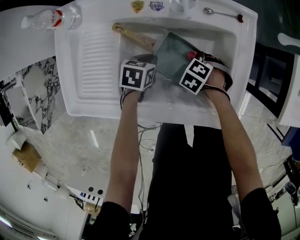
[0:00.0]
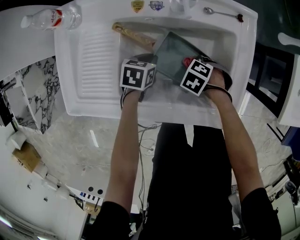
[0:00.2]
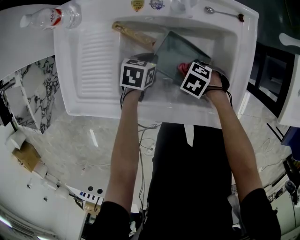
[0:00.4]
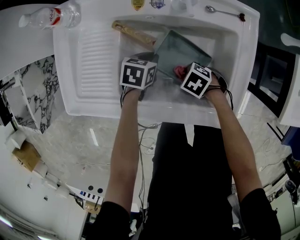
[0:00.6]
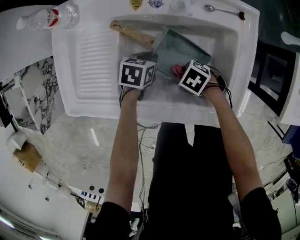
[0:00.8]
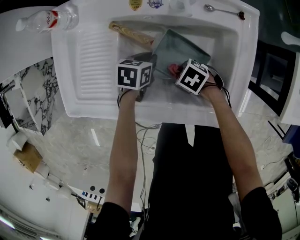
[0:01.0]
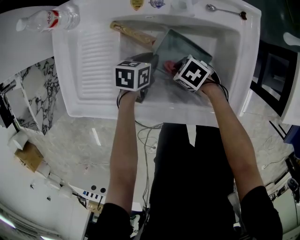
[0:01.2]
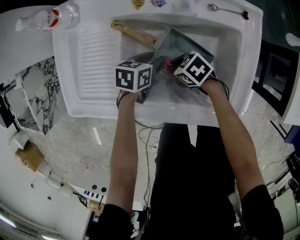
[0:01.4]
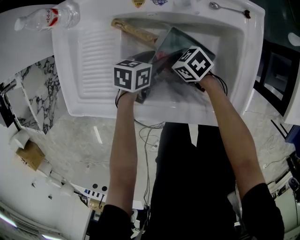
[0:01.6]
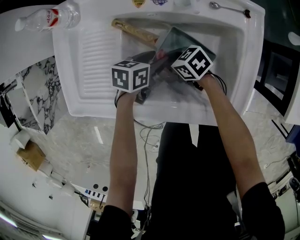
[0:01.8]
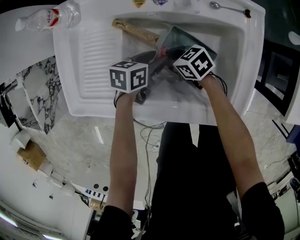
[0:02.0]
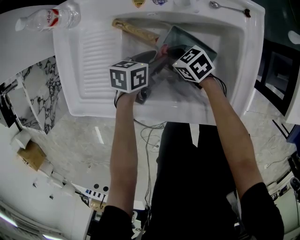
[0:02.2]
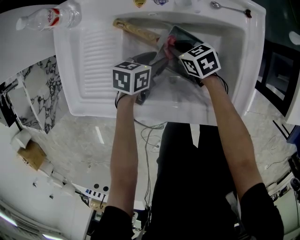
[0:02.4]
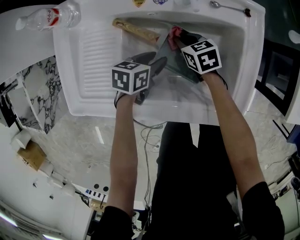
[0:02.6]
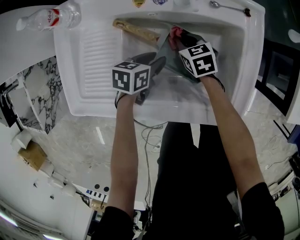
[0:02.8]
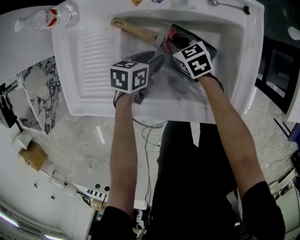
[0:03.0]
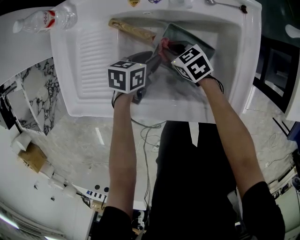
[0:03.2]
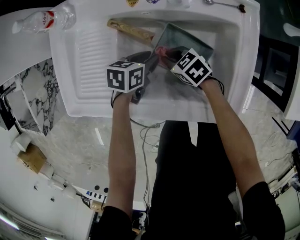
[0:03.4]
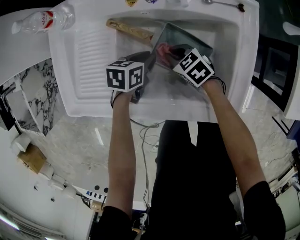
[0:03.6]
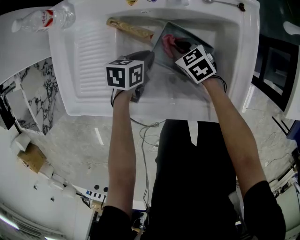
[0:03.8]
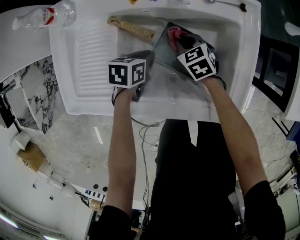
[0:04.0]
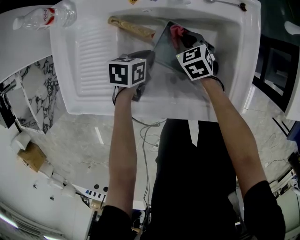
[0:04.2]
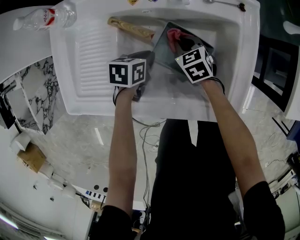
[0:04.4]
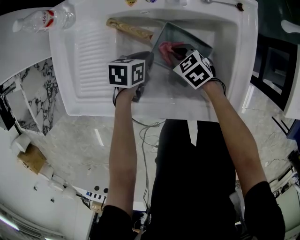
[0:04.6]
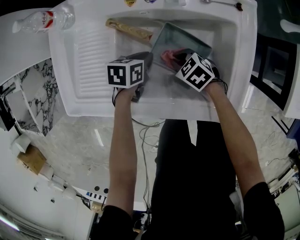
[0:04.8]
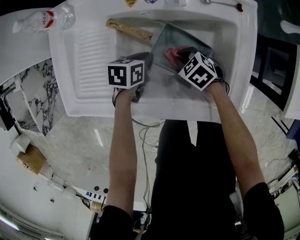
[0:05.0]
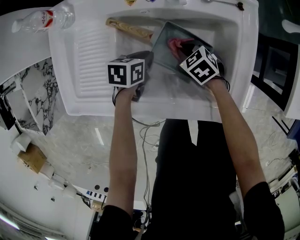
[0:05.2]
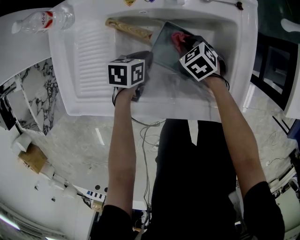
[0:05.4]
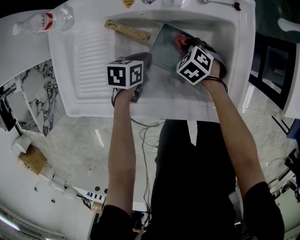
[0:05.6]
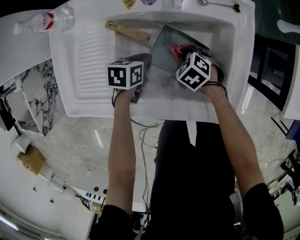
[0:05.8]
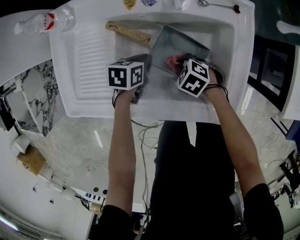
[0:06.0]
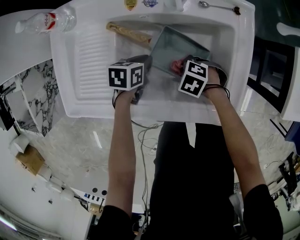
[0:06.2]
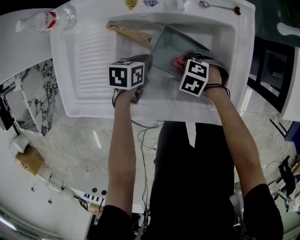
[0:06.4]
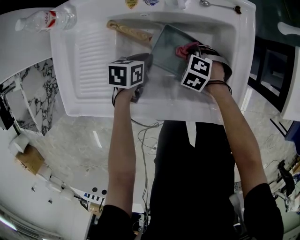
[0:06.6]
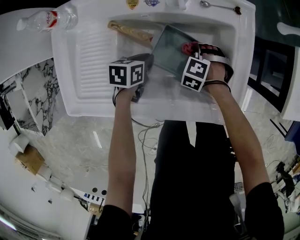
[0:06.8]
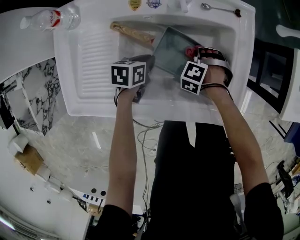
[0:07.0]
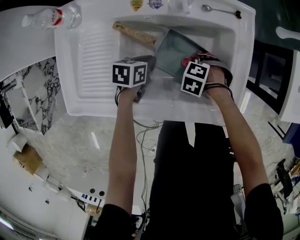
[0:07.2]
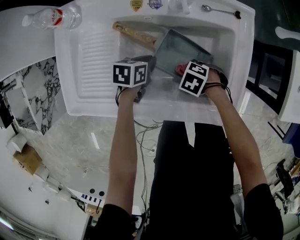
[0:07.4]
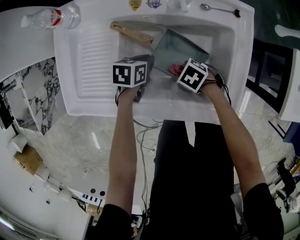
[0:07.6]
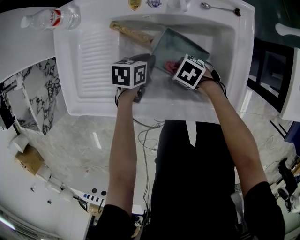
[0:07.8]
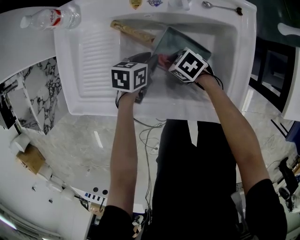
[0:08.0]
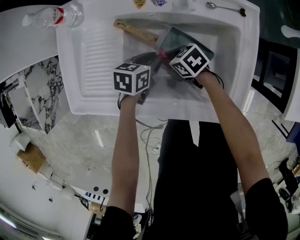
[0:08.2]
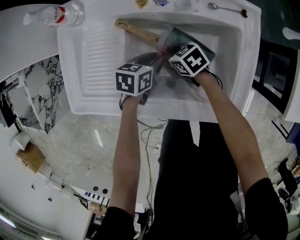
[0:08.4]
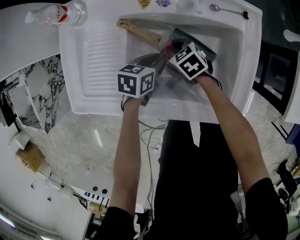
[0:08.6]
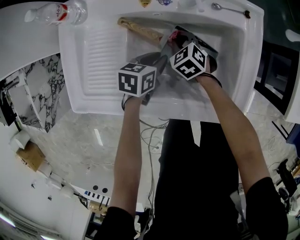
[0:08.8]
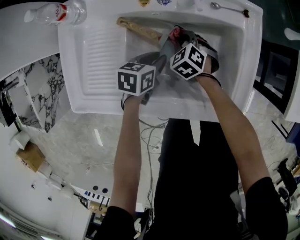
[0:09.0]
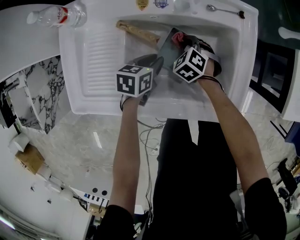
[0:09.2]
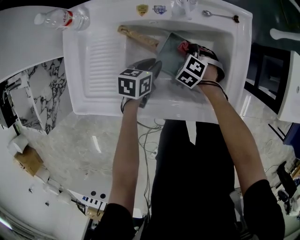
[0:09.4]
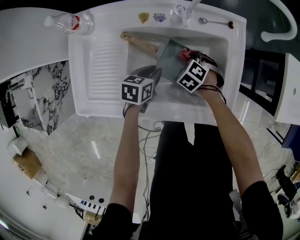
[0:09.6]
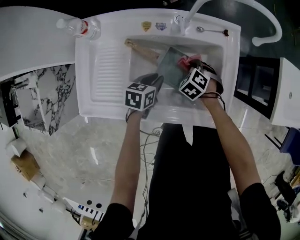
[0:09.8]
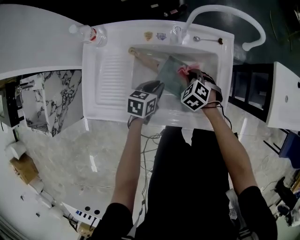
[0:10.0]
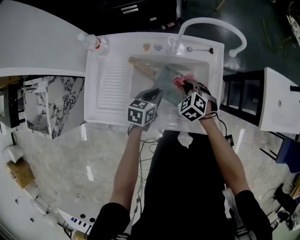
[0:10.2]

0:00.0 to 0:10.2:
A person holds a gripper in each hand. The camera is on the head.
0:00.0 to 0:01.4: The left gripper opens, while the right gripper shifts by approximately 15 cm, and tips its fingers upward by roughly 40 degrees.
0:01.4 to 0:03.0: The right gripper changes place by some 10 cm, and rotates about 30 degrees.
0:03.0 to 0:04.4: The left gripper closes up.
0:04.4 to 0:05.8: The right gripper moves roughly 5 cm, and rotates some 30 degrees.
0:05.8 to 0:07.2: The right gripper ends up roughly 5 cm from where it was, and changes its angle by approximately 30 degrees.
0:07.2 to 0:08.8: The right gripper ends up approximately 15 cm from where it was, and angles its fingers upward, by some 30 degrees.
0:08.8 to 0:10.2: The left gripper shifts some 10 cm upward. The right gripper moves upward and to the right, some 20 cm.

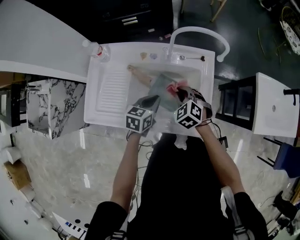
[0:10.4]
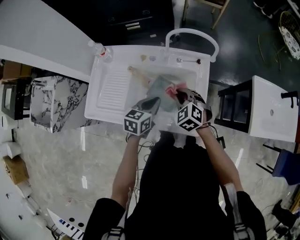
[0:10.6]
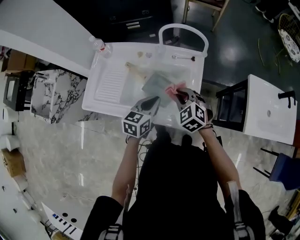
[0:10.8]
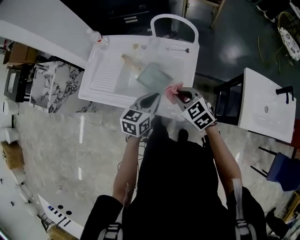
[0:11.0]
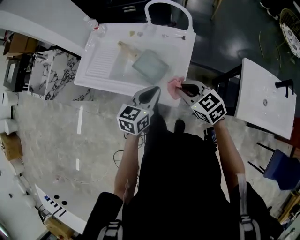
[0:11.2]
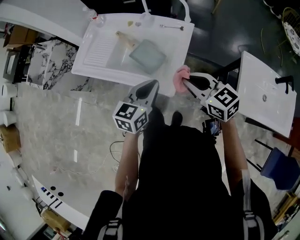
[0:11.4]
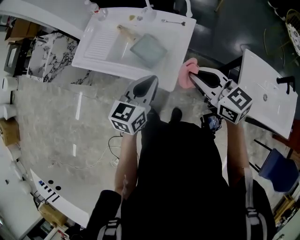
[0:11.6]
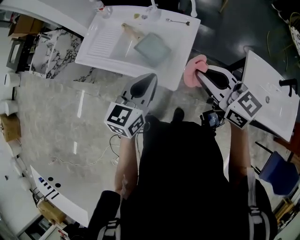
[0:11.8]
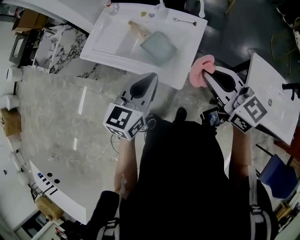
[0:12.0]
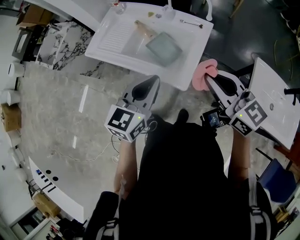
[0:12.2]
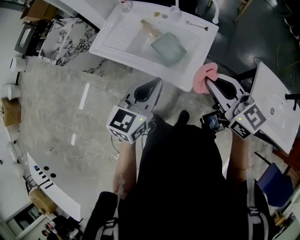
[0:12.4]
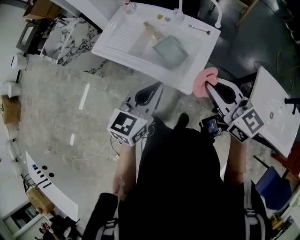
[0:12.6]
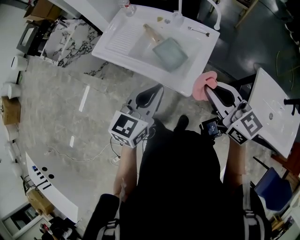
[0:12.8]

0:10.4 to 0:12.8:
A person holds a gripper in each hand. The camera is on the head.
0:10.4 to 0:11.6: The right gripper changes place by roughly 35 cm, and tilts its fingers some 40 degrees upward, while the left gripper moves roughly 30 cm, and turns by some 30 degrees.
0:11.6 to 0:12.8: The left gripper heads to the left and upward, covering about 10 cm. Meanwhile the right gripper heads upward, covering roughly 5 cm.

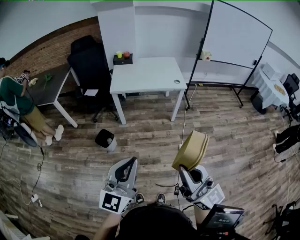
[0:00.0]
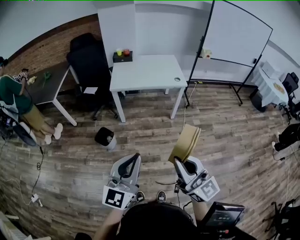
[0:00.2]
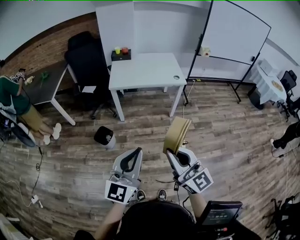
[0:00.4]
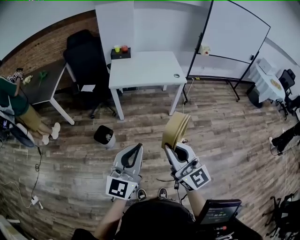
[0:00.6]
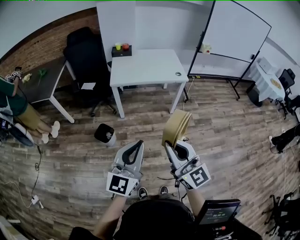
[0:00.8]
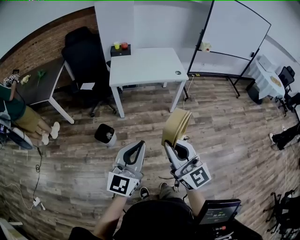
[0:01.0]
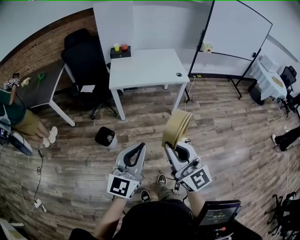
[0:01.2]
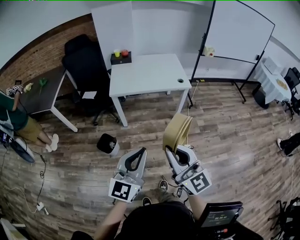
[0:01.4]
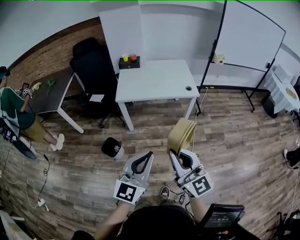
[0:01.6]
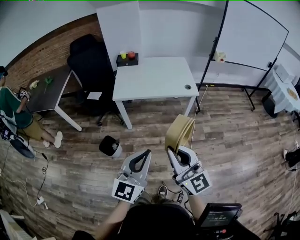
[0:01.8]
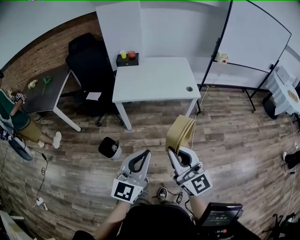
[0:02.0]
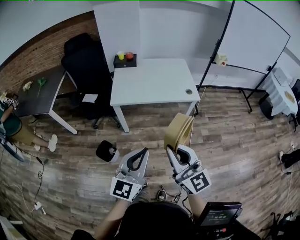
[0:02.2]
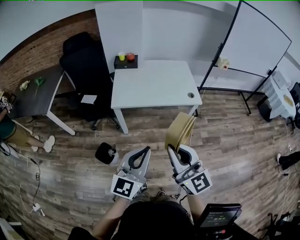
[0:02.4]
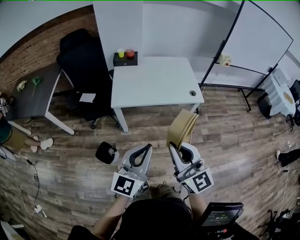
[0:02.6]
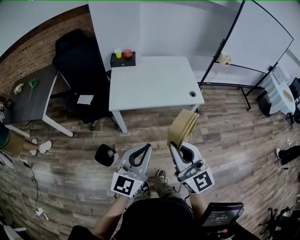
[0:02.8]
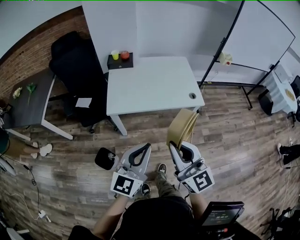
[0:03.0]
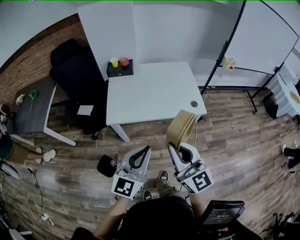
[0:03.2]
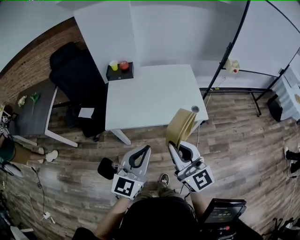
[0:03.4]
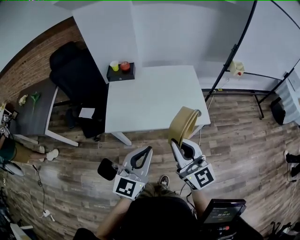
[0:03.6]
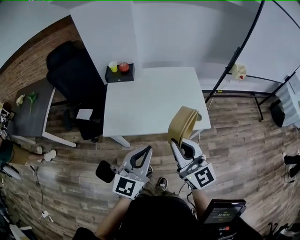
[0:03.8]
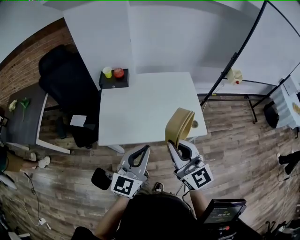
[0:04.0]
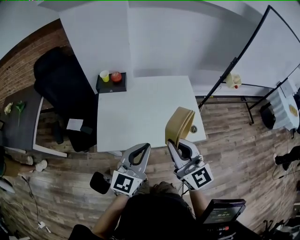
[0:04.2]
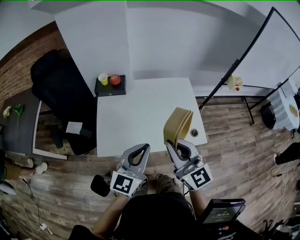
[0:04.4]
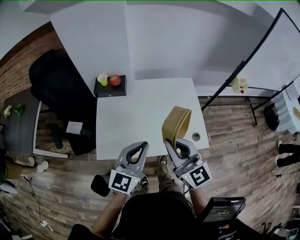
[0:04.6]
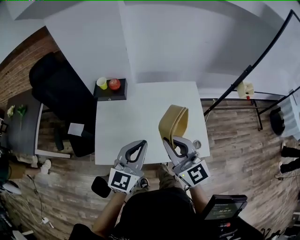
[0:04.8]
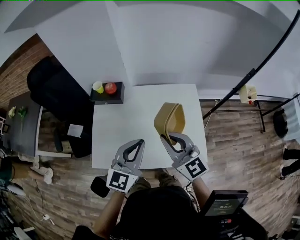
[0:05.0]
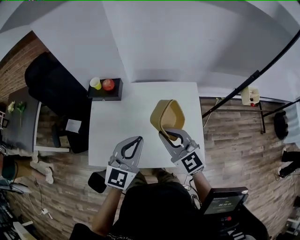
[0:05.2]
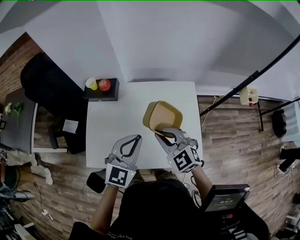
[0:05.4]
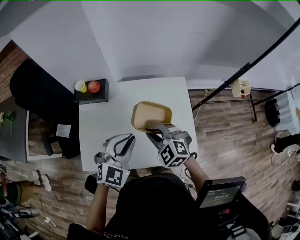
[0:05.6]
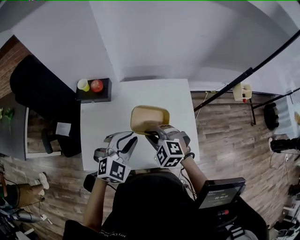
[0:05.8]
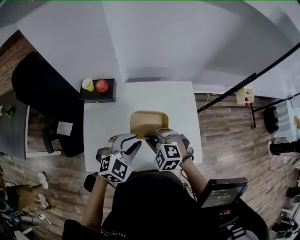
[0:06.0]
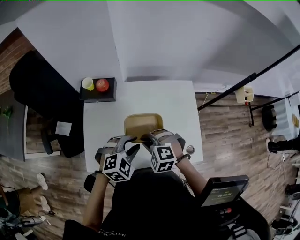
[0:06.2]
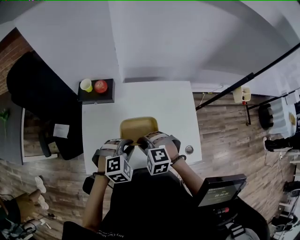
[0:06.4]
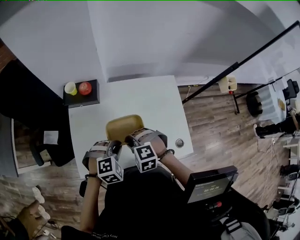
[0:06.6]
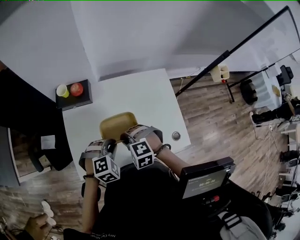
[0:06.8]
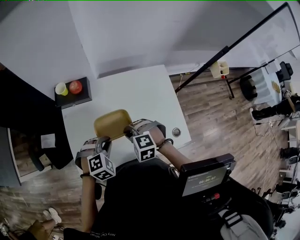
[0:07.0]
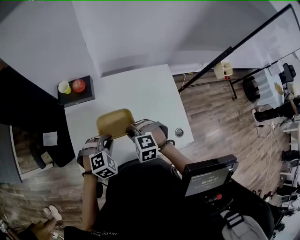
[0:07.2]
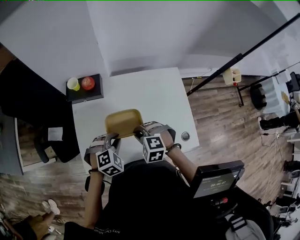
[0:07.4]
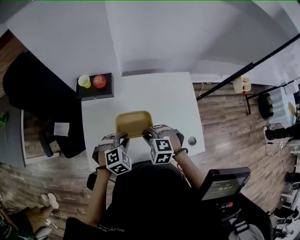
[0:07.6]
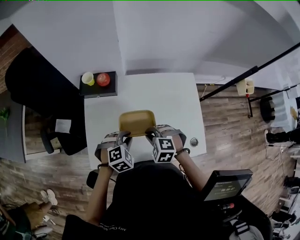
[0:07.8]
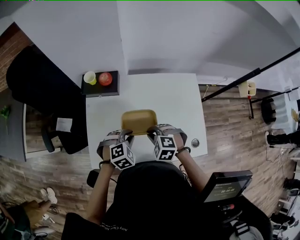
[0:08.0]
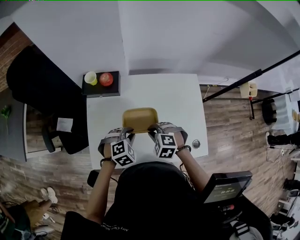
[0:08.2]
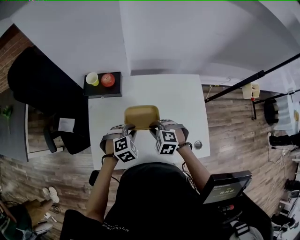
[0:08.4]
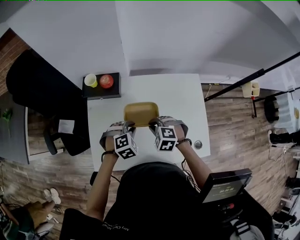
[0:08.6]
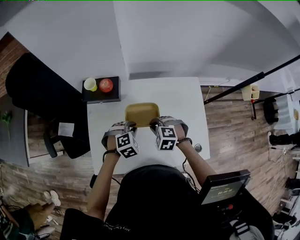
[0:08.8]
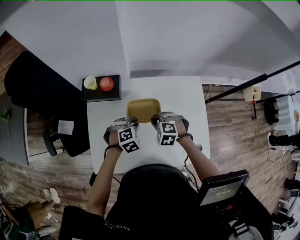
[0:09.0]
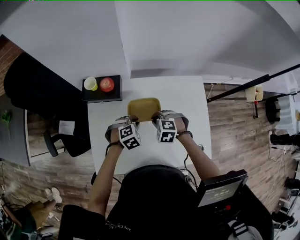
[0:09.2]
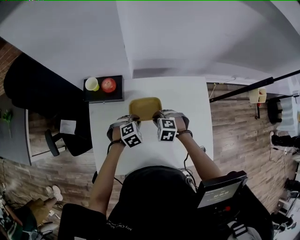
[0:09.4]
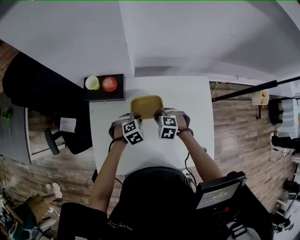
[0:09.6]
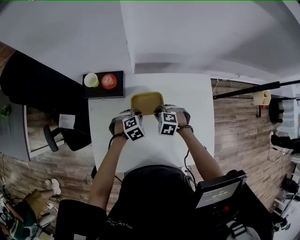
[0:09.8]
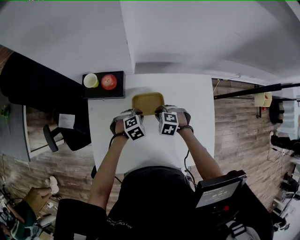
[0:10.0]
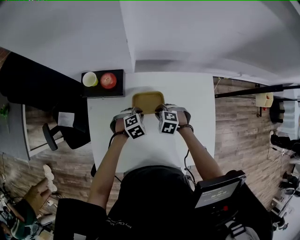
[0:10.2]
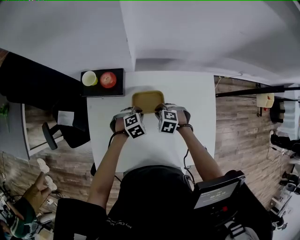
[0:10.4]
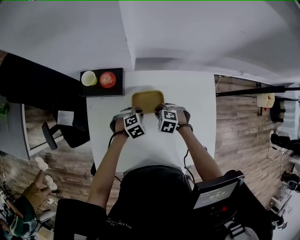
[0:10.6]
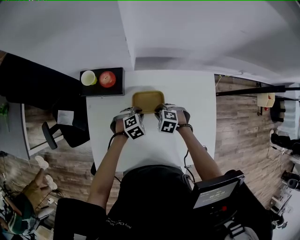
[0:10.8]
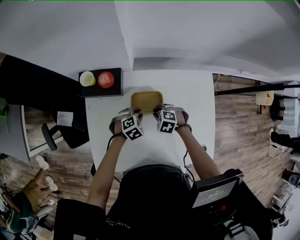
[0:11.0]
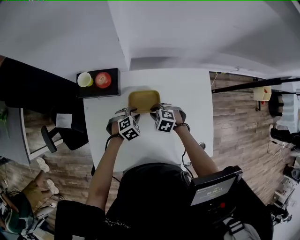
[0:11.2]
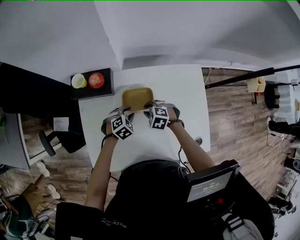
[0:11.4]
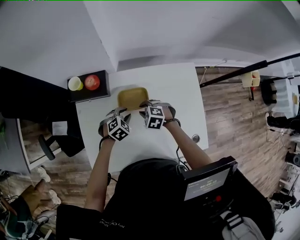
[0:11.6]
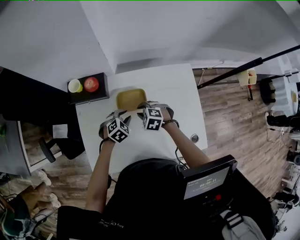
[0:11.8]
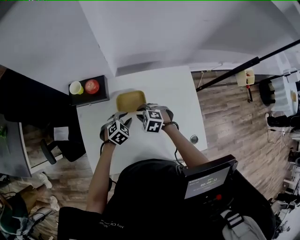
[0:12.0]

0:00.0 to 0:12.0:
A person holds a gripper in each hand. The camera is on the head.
0:00.0 to 0:01.6: The two grippers go roughly 20 cm forward.
0:01.6 to 0:03.0: Both grippers travel together forward, approximately 25 cm.
0:03.0 to 0:04.4: The grippers both shift forward by about 35 cm.
0:04.4 to 0:06.0: Both grippers travel together forward and downward, some 25 cm. The right gripper angles its fingers downward, by roughly 50 degrees. Meanwhile the left gripper tilts its fingers some 30 degrees downward, and opens its fingers.
0:06.0 to 0:07.6: The right gripper heads downward, covering about 5 cm. Meanwhile the left gripper shifts roughly 15 cm downward and to the left, and rotates approximately 20 degrees.
0:07.6 to 0:09.0: The grippers both shift forward and downward by some 10 cm.
0:09.0 to 0:10.4: Both grippers move downward and forward, some 10 cm.
0:10.4 to 0:12.0: Both grippers travel together upward, about 5 cm.
